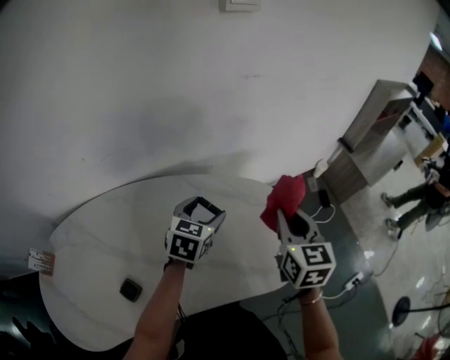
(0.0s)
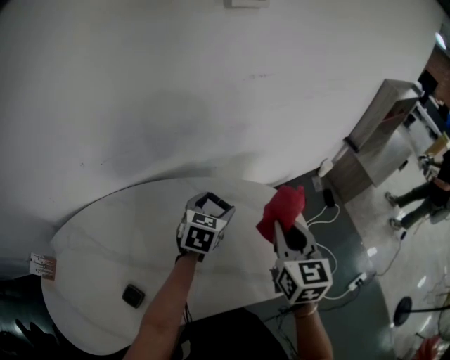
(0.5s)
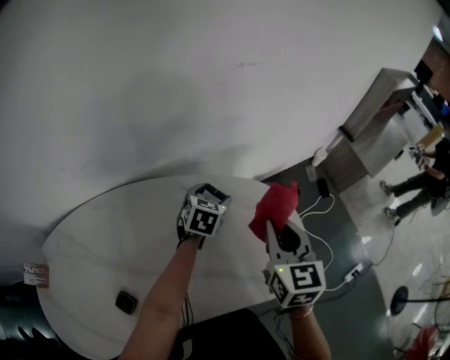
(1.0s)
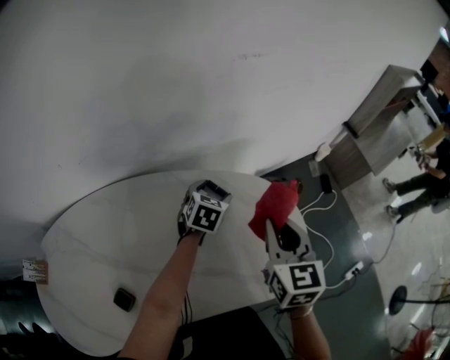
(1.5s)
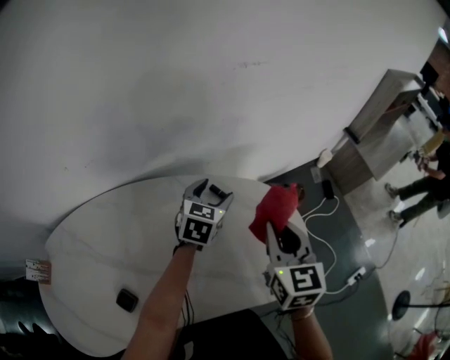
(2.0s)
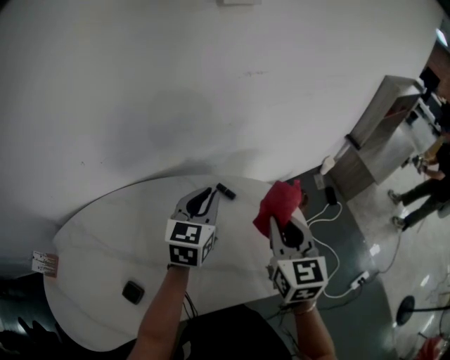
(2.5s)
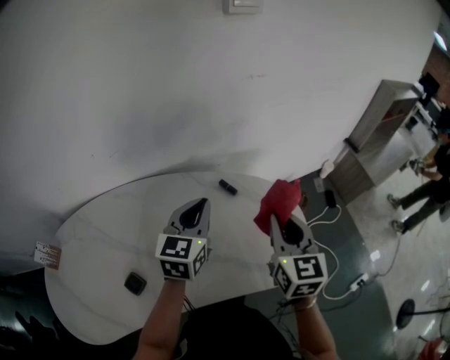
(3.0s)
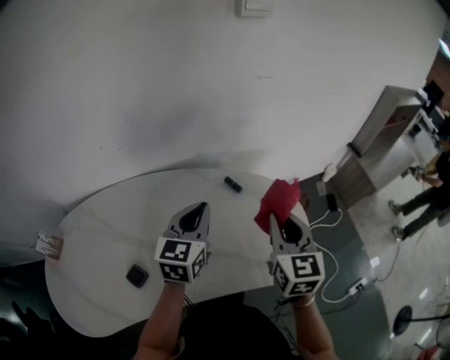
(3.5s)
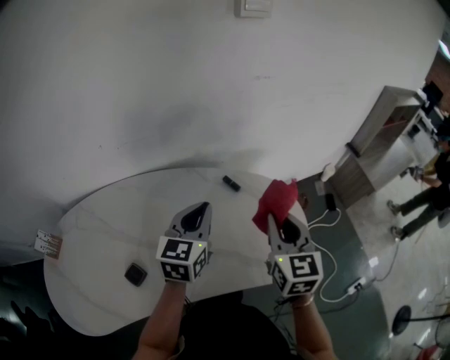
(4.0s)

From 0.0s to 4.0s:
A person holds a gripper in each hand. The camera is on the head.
From 0.0s to 2.0s: The left gripper moves forward, approximately 10 cm, and moves roughly 10 cm downward and comes back.
From 2.0s to 4.0s: The left gripper moves backward and upward, some 20 cm, turns by some 20 degrees, and closes its fingers, while the right gripper moves backward, approximately 5 cm.

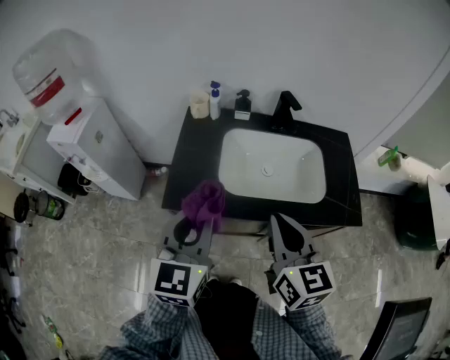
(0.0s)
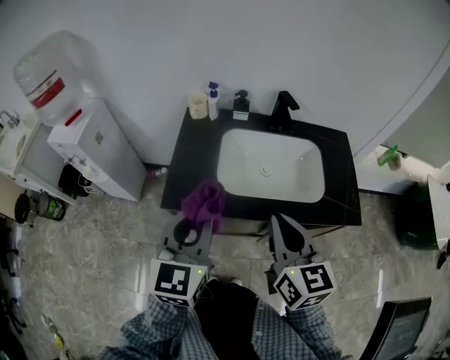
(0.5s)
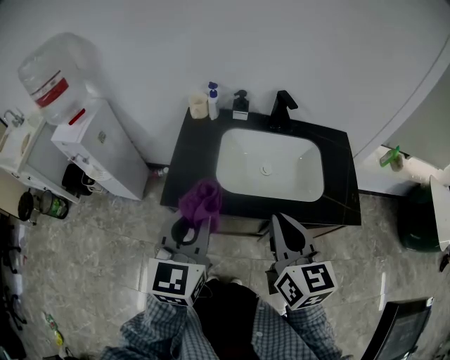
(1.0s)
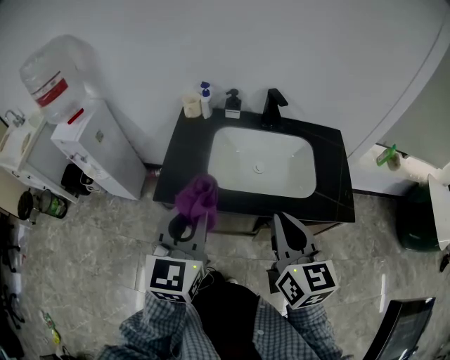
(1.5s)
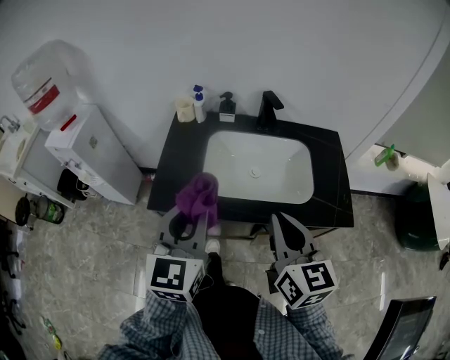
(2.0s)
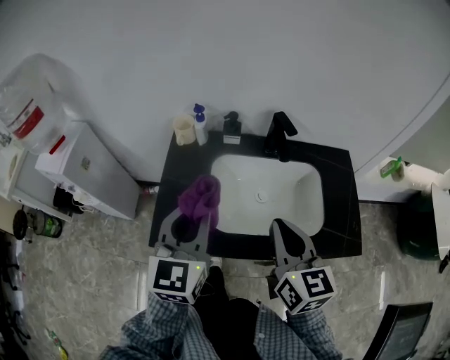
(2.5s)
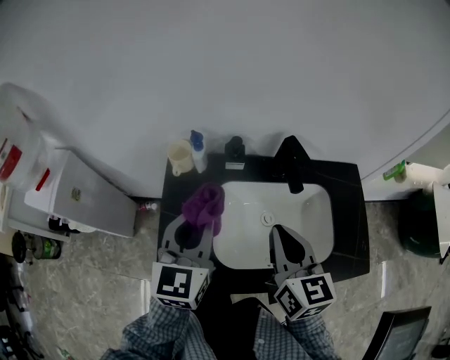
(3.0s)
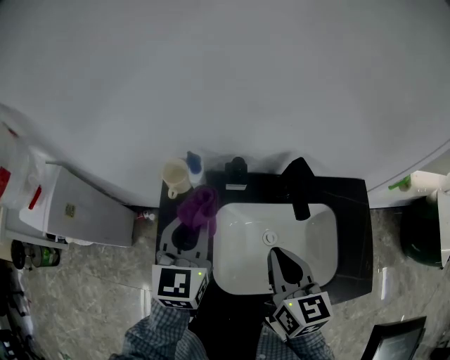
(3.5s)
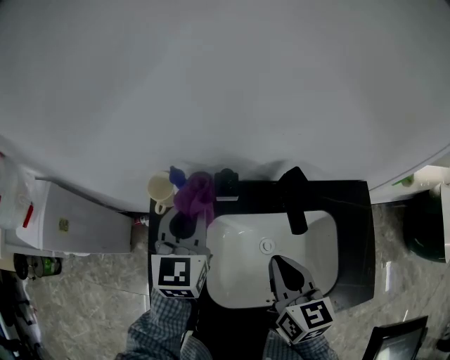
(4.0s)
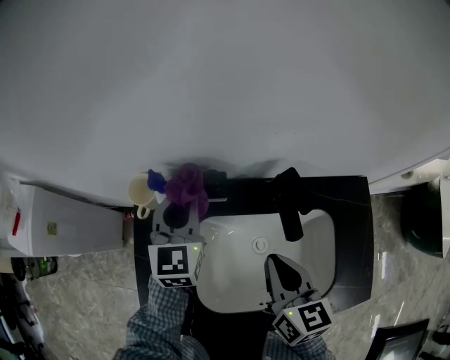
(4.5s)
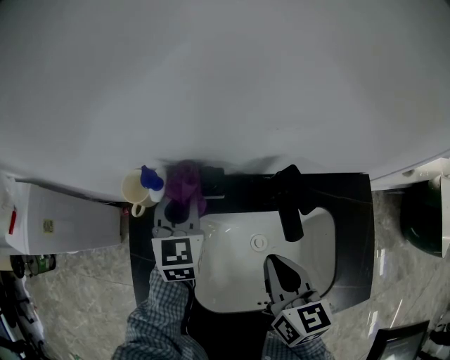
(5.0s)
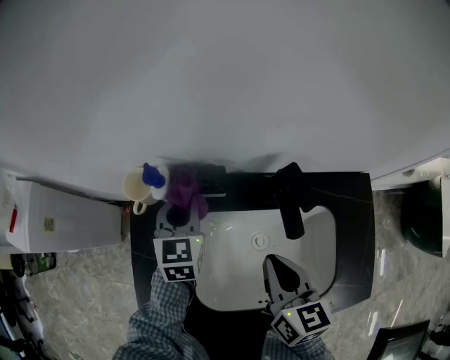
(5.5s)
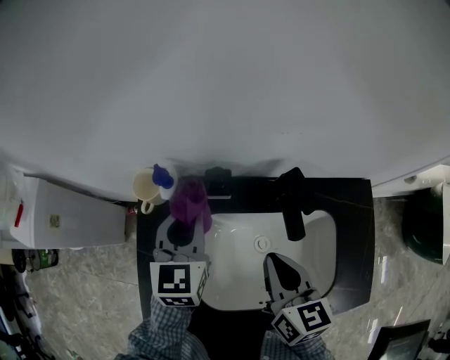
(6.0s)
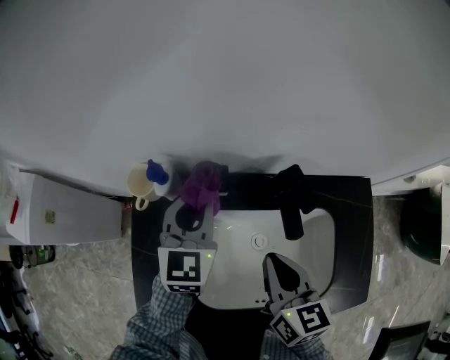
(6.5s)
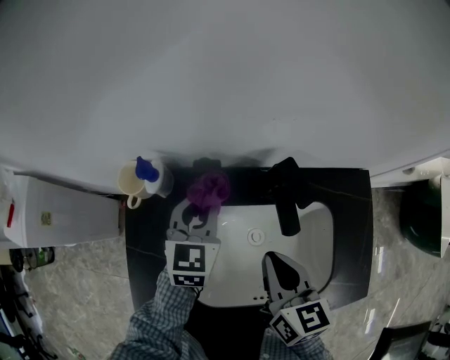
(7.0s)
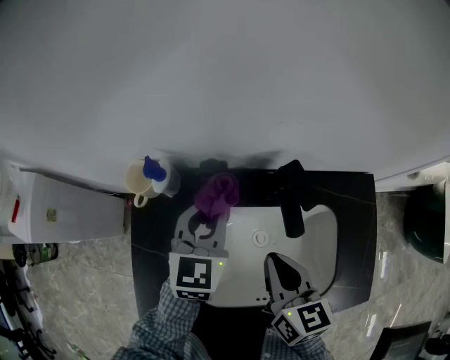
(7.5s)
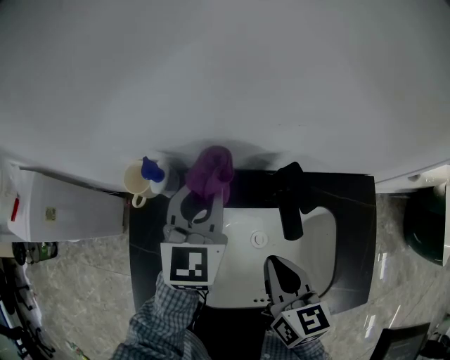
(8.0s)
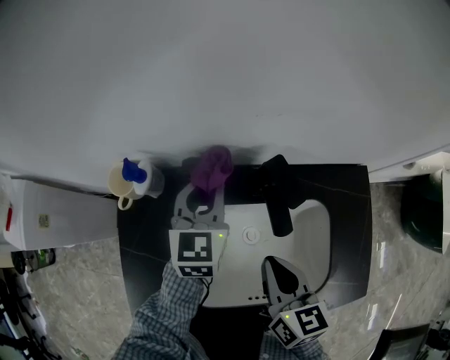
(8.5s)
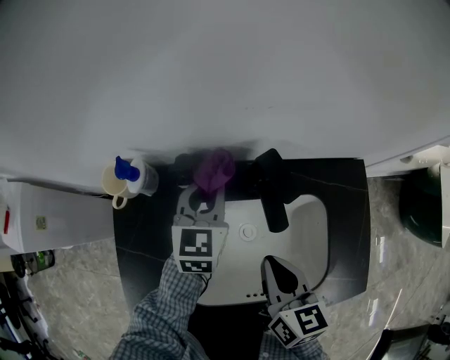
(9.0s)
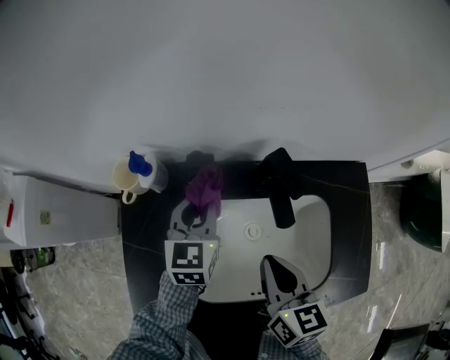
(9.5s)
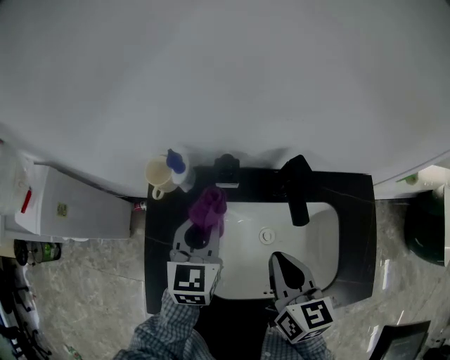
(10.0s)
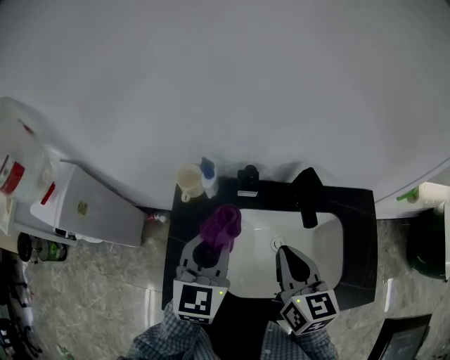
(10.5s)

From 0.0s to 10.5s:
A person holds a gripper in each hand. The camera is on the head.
From 0.0s to 2.0s: The grippers both shift to the right by roughly 5 cm.
From 2.0s to 4.0s: The grippers both shift forward by roughly 35 cm.
From 4.0s to 6.5s: The left gripper goes some 5 cm to the right.
From 6.5s to 8.5s: The left gripper goes up and down, roughly 10 cm each way, reversing 2 times.
From 8.5s to 10.5s: The left gripper goes roughly 20 cm backward, to the left and upward, while the right gripper moves upward and to the left, approximately 10 cm.

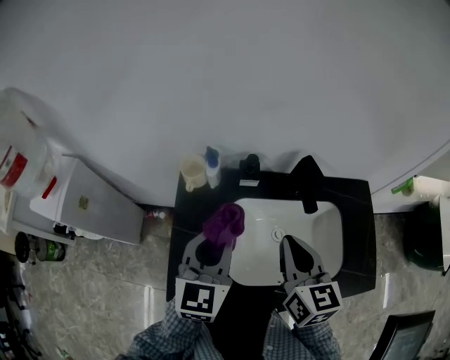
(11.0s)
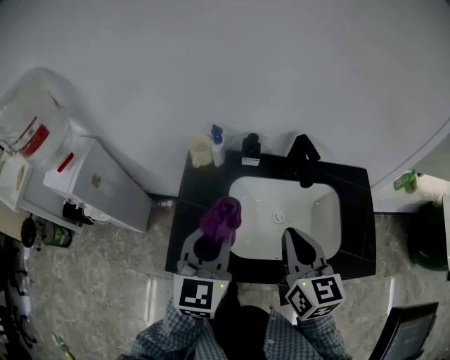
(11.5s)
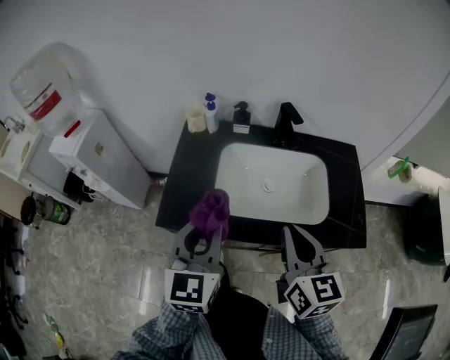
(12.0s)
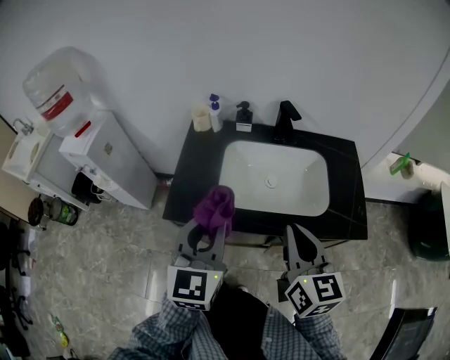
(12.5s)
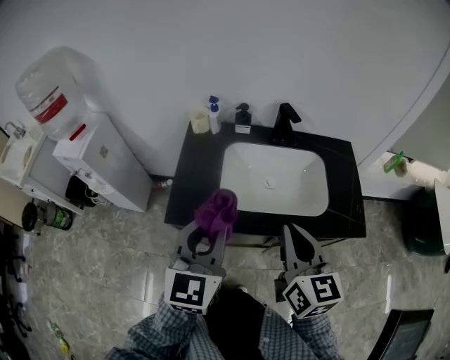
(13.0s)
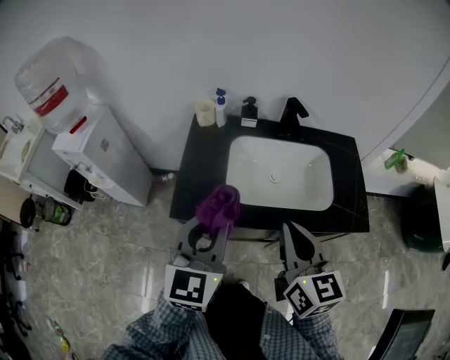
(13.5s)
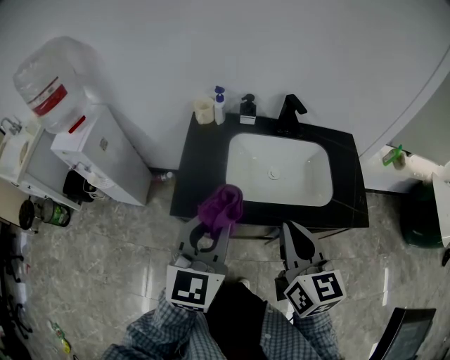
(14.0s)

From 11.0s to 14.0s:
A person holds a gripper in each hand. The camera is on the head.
From 11.0s to 12.5s: The two grippers go some 25 cm backward.
From 12.5s to 14.0s: The right gripper is displaced to the left by roughly 5 cm.

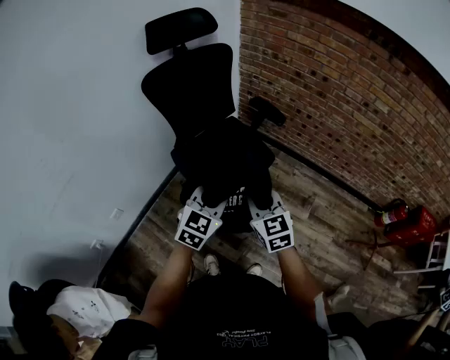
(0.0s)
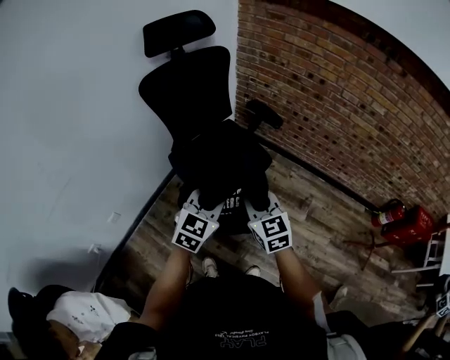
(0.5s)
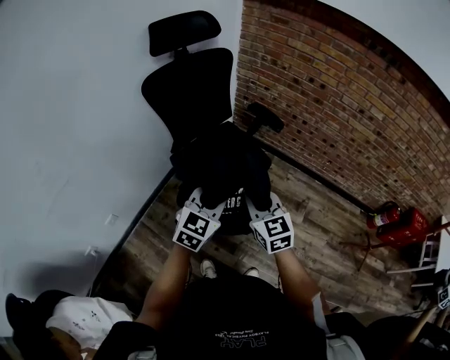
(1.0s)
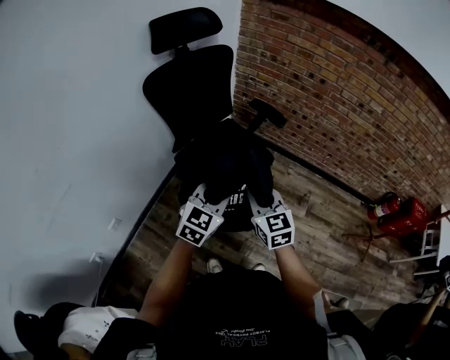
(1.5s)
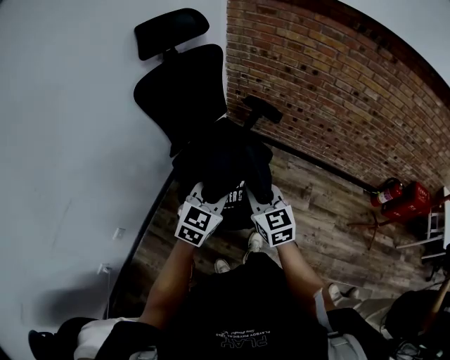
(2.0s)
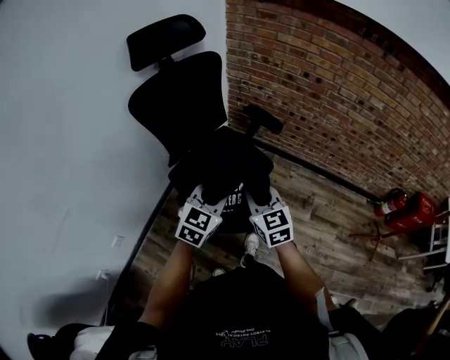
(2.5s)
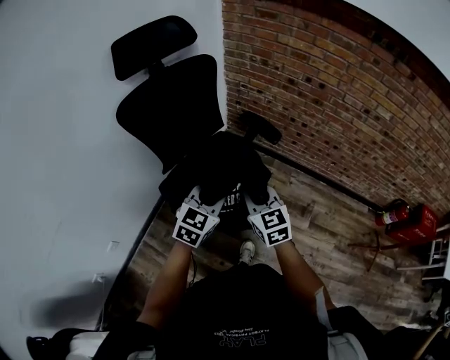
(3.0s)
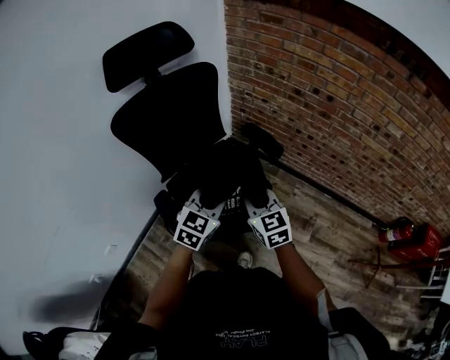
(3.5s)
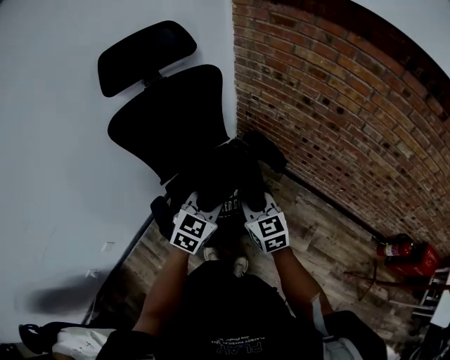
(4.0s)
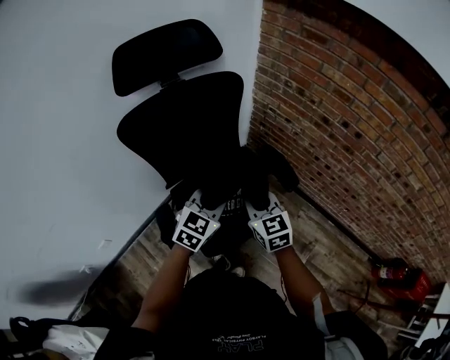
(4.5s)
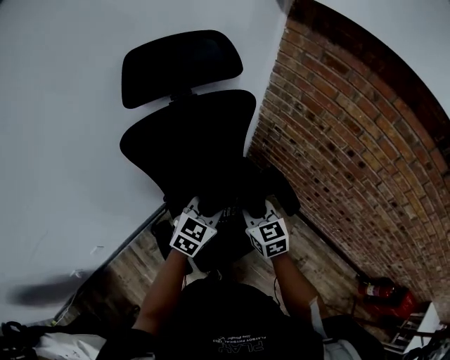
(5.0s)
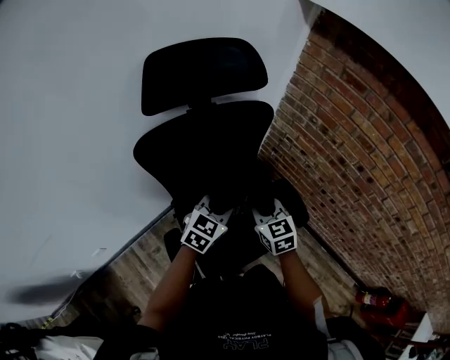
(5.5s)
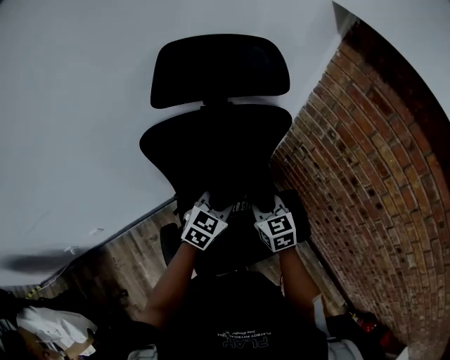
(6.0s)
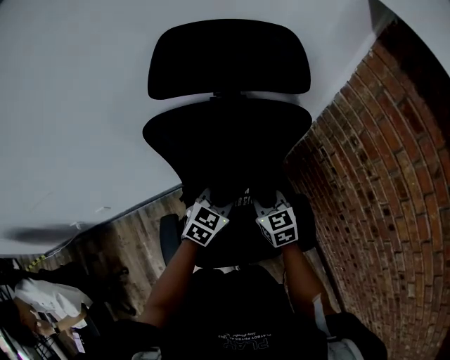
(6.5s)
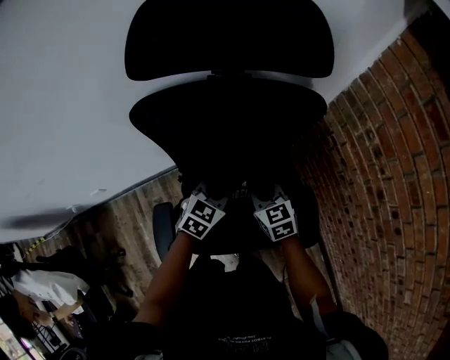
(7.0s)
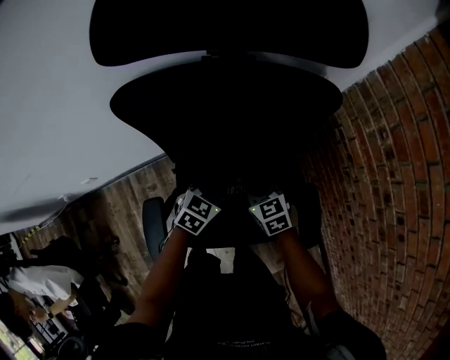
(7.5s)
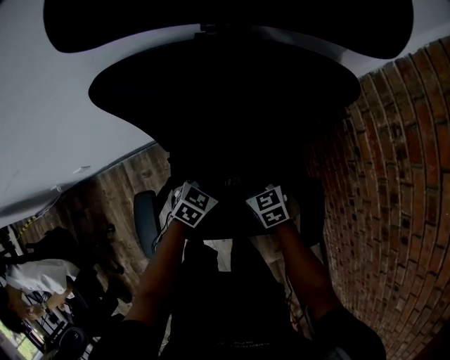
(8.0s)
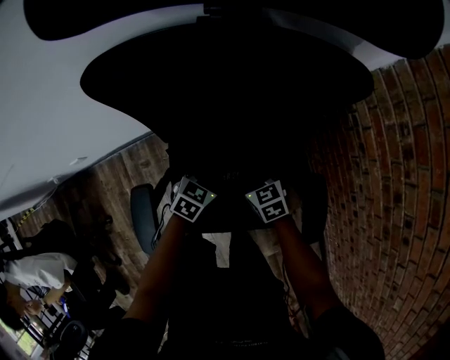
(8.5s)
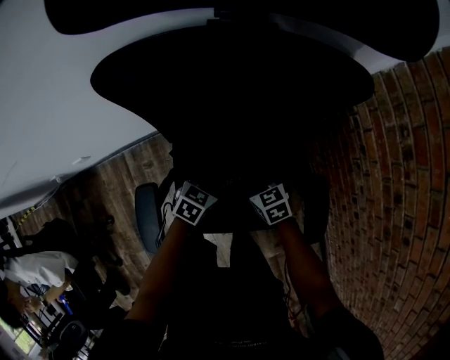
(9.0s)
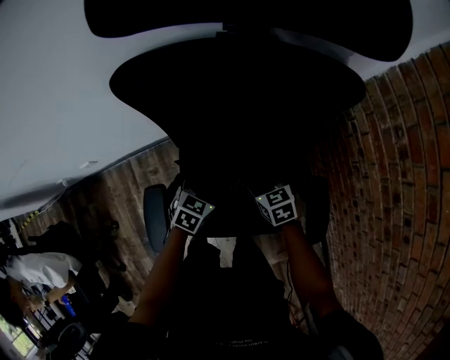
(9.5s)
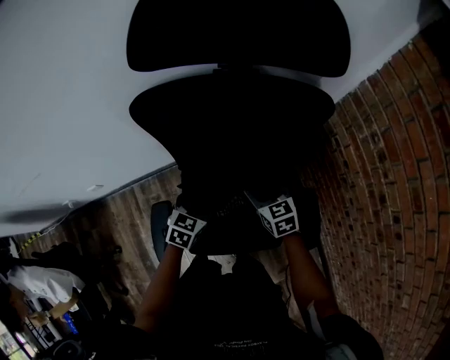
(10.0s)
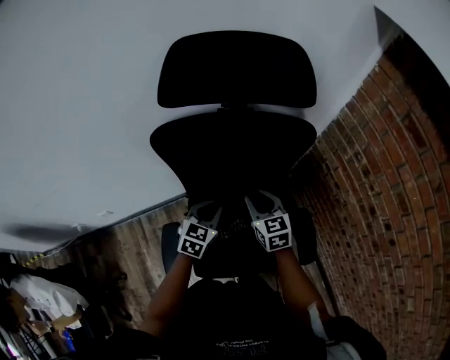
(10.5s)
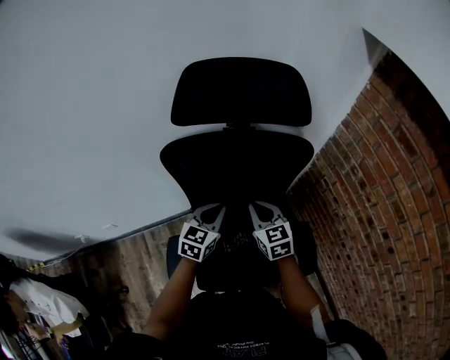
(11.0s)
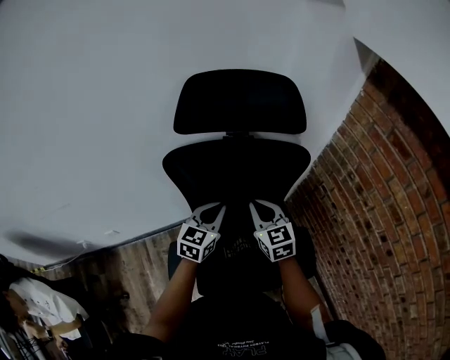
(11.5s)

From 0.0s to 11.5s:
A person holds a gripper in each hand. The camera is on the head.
From 0.0s to 2.0s: The grippers both shift to the left by about 5 cm.
From 2.0s to 4.0s: The grippers both shift forward by about 25 cm.
From 4.0s to 6.0s: The grippers both shift forward and to the left by about 25 cm. The right gripper swivels roughly 20 degrees.
From 6.0s to 7.5s: Both grippers move downward, some 20 cm. The right gripper turns by approximately 20 degrees. The left gripper swivels approximately 20 degrees.
From 7.5s to 9.5s: The grippers both shift downward by approximately 5 cm. The left gripper opens up. Meanwhile the right gripper opens its fingers.
From 9.5s to 11.5s: The grippers both shift upward by approximately 25 cm. The right gripper rotates about 30 degrees, and closes up. The left gripper swivels about 30 degrees, and closes up.
